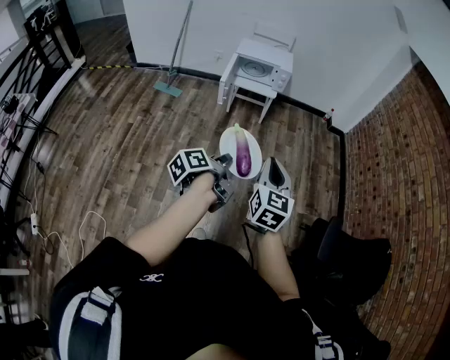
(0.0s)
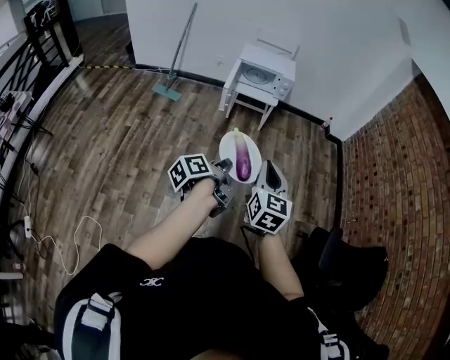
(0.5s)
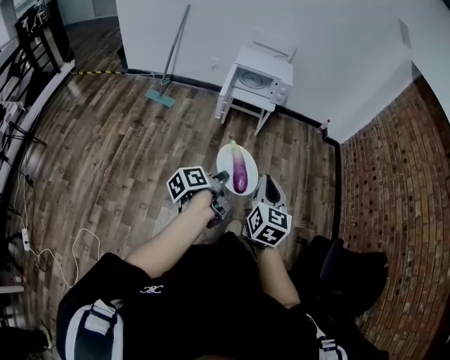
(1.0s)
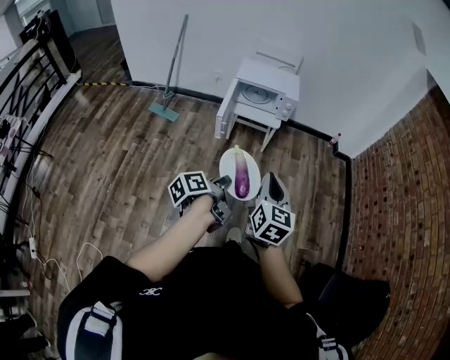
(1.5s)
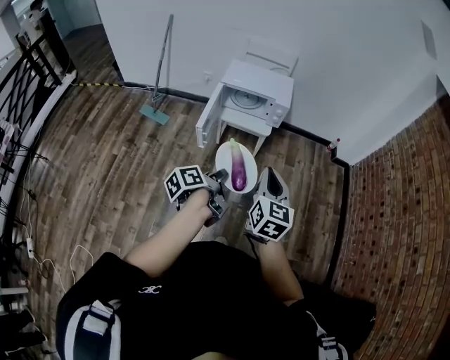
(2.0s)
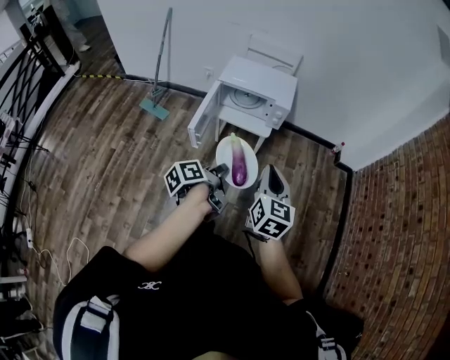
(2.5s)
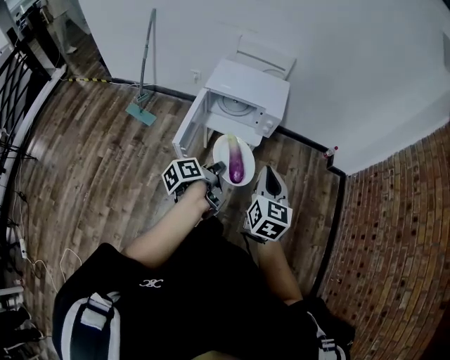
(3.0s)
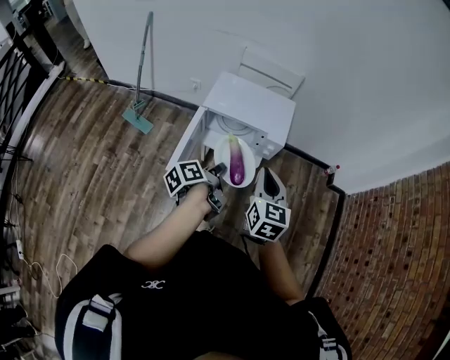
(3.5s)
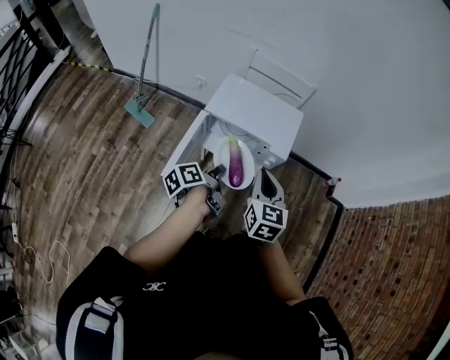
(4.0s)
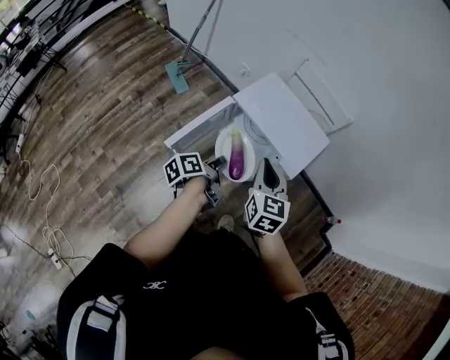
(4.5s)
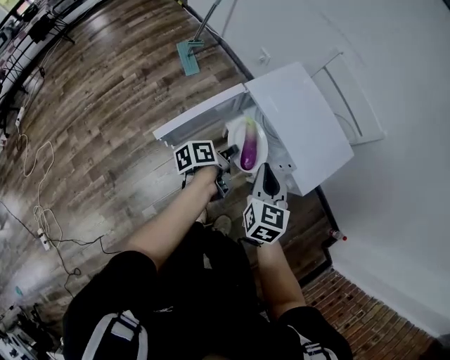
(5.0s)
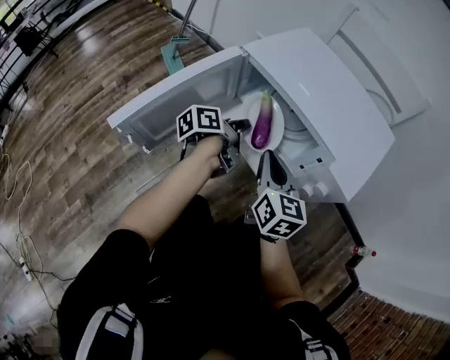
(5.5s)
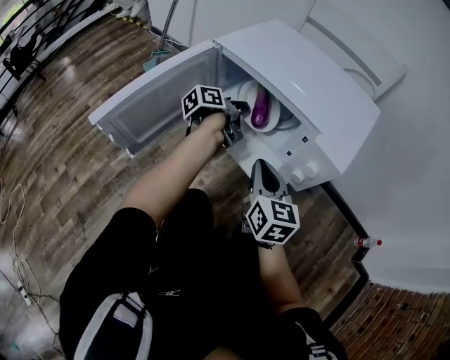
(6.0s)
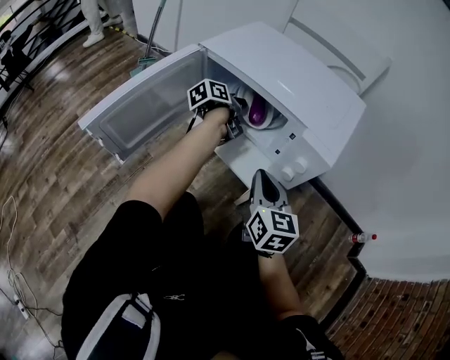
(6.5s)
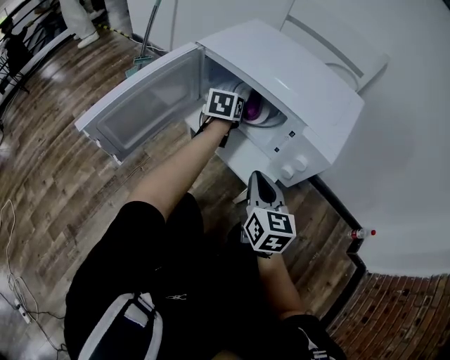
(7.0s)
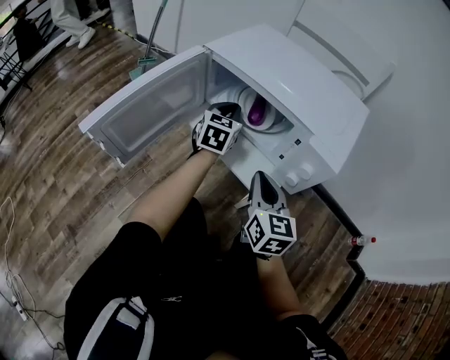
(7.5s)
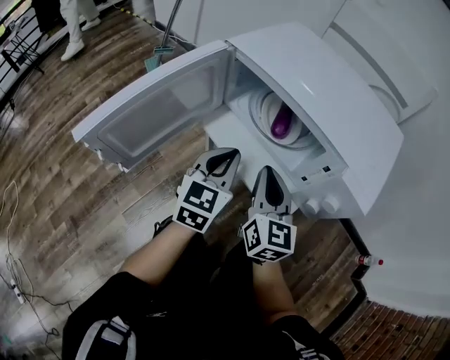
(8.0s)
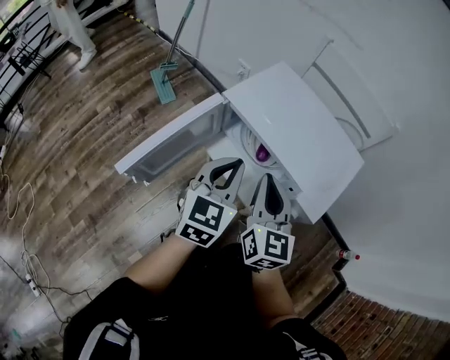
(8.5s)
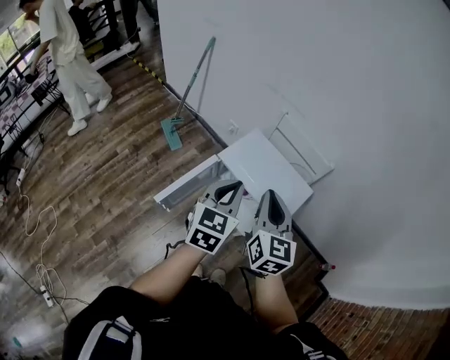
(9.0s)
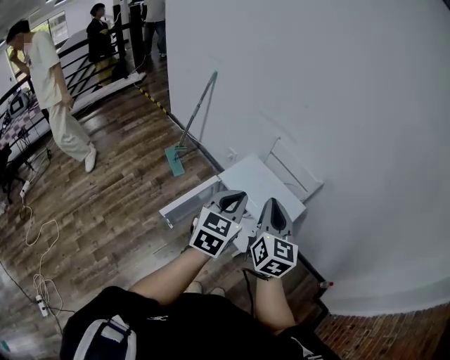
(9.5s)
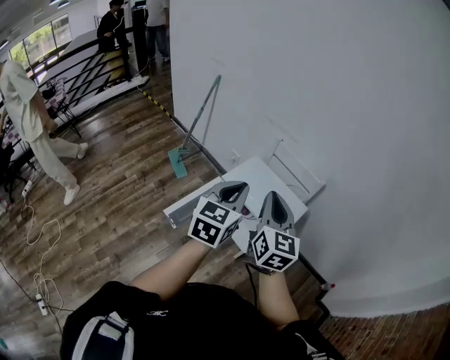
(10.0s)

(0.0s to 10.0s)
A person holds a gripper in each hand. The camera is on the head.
0.0s - 2.0s: Both grippers travel together forward, roughly 35 cm.
2.0s - 4.0s: Both grippers move forward, approximately 40 cm.
4.0s - 6.0s: Both grippers move downward, some 35 cm. The right gripper swivels approximately 30 degrees.
6.0s - 8.0s: The right gripper ends up roughly 5 cm from where it was, while the left gripper moves backward, about 10 cm, twists some 70 degrees clockwise, seen from behind, and opens, then closes again.
8.0s - 10.0s: Both grippers travel together upward, approximately 60 cm.

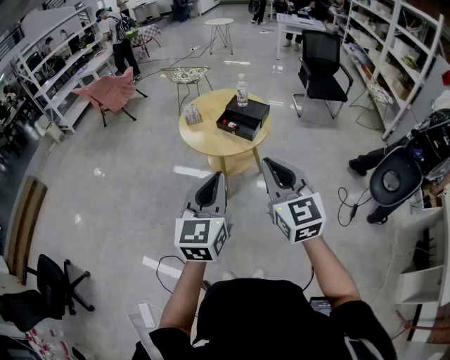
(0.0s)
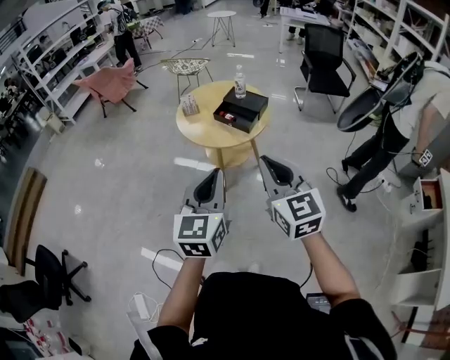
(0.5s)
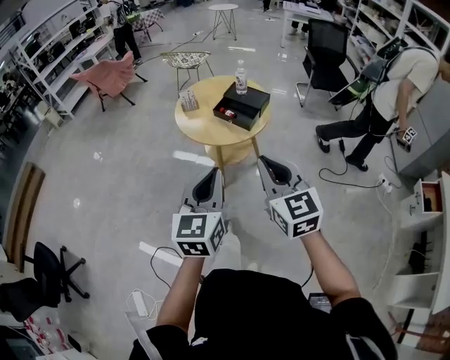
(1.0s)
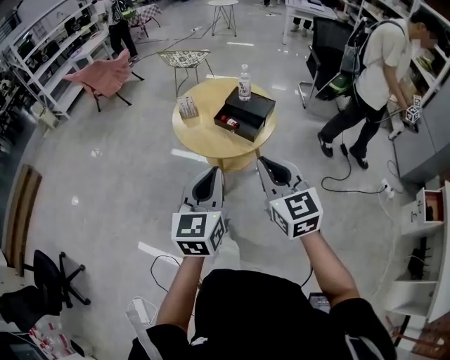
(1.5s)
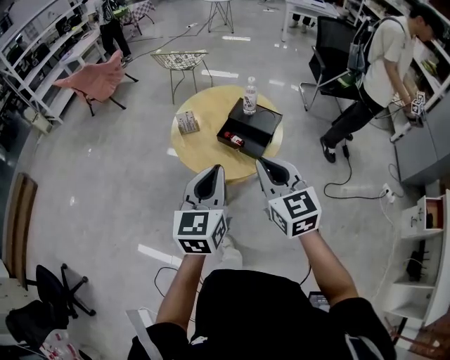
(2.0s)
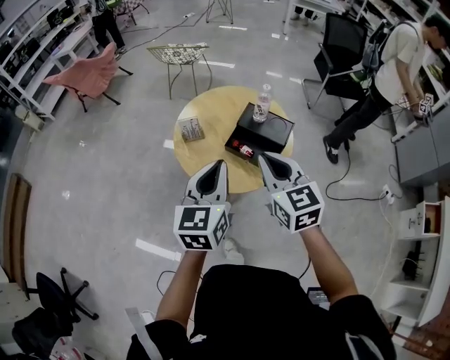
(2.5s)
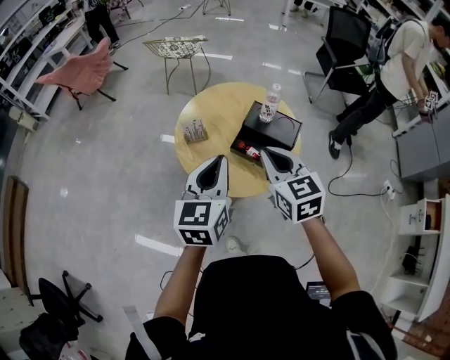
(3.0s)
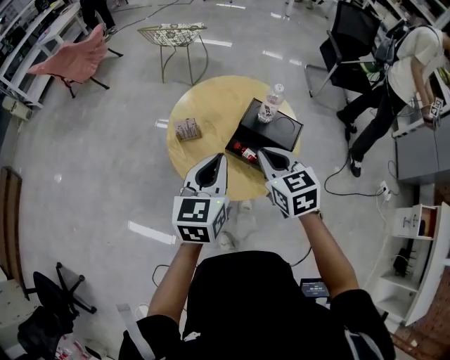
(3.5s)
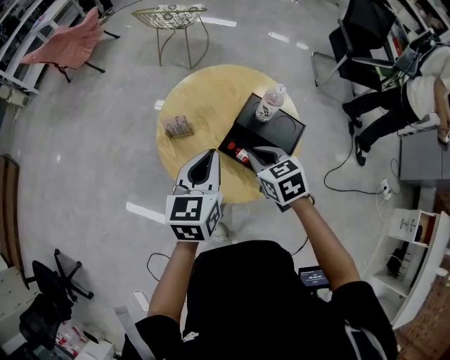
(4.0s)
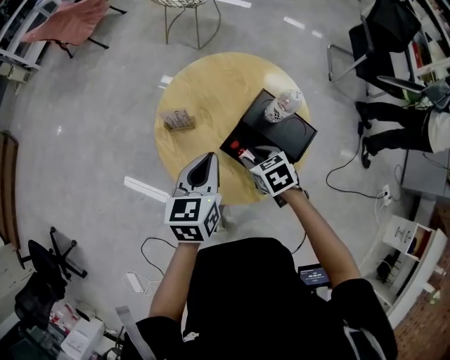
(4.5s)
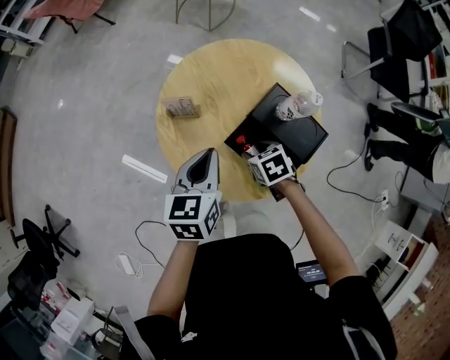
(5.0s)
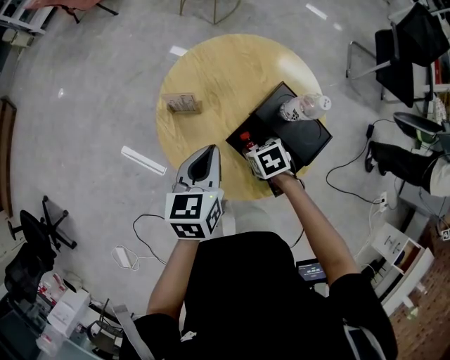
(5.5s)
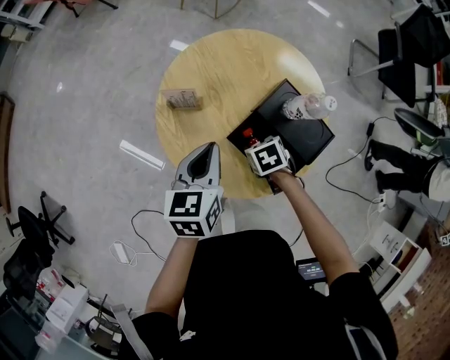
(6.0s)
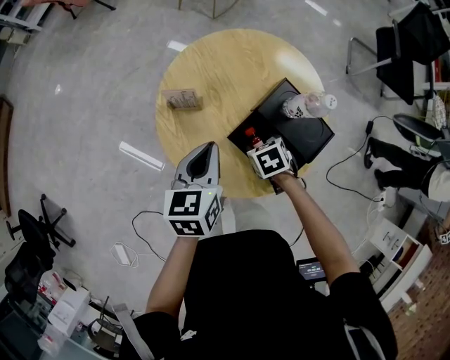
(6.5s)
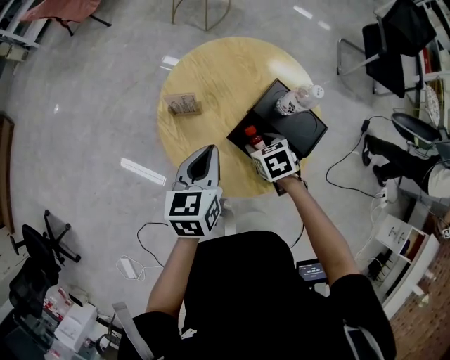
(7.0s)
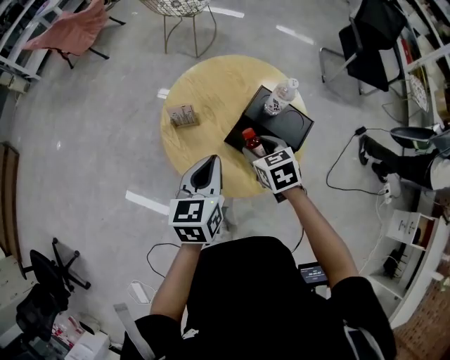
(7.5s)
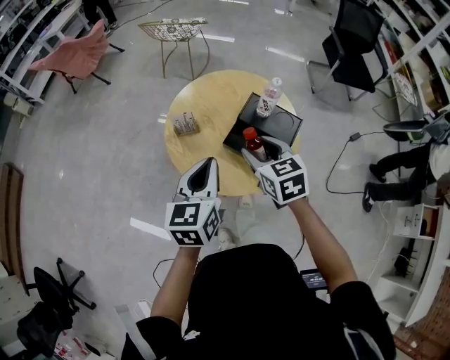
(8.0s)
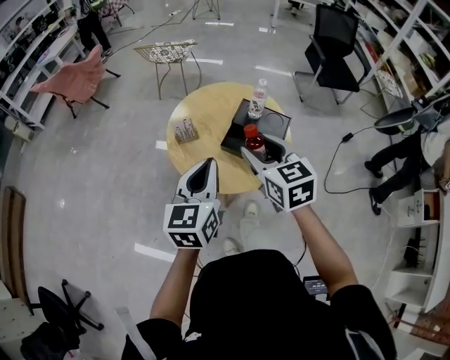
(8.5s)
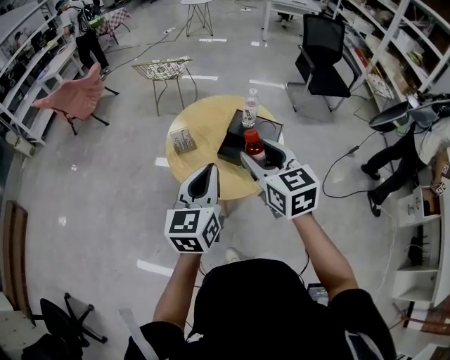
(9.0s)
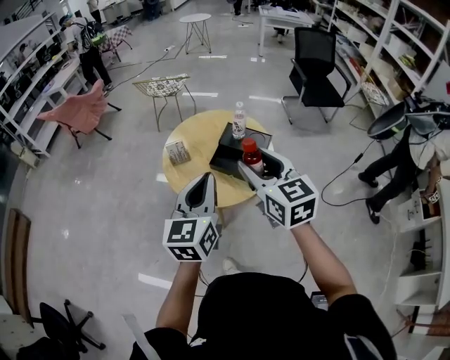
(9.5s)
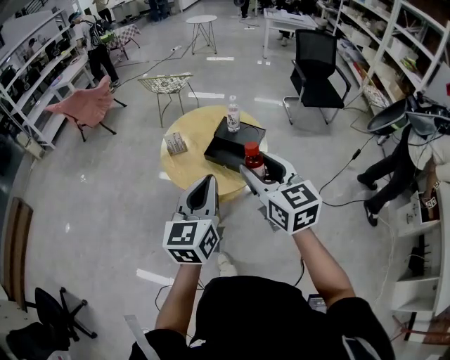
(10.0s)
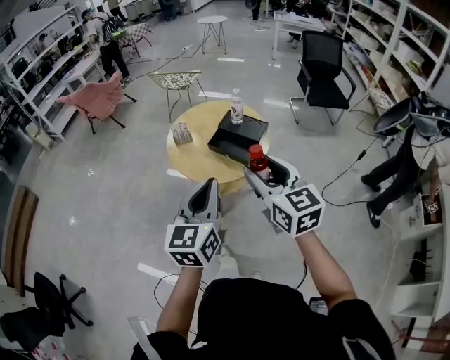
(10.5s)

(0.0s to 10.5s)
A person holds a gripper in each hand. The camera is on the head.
0.0s - 2.0s: The two grippers go about 30 cm forward.
2.0s - 4.0s: The grippers both shift forward and downward by roughly 30 cm. The right gripper angles its fingers downward, by roughly 30 degrees.
4.0s - 6.5s: The left gripper heads downward and forward, covering roughly 15 cm, while the right gripper travels downward by roughly 20 cm, swivels about 30 degrees, and opens up.
6.5s - 8.5s: The left gripper shifts about 20 cm upward, and changes its angle by roughly 30 degrees. The right gripper travels upward by some 35 cm, and points its fingers some 50 degrees further upward.
8.5s - 10.5s: Both grippers travel together backward and to the right, roughly 25 cm.

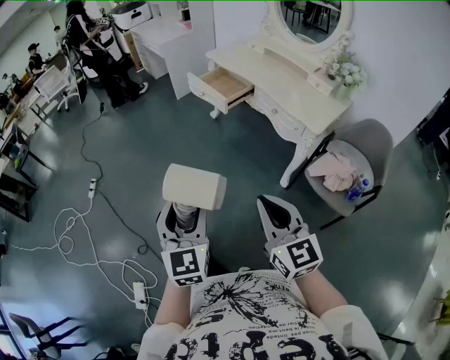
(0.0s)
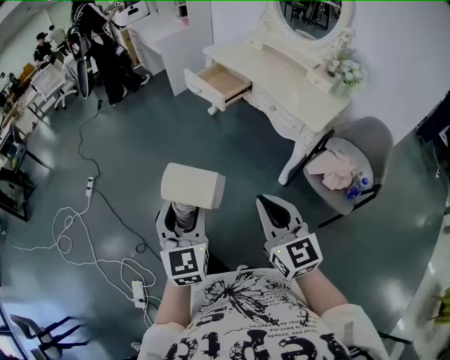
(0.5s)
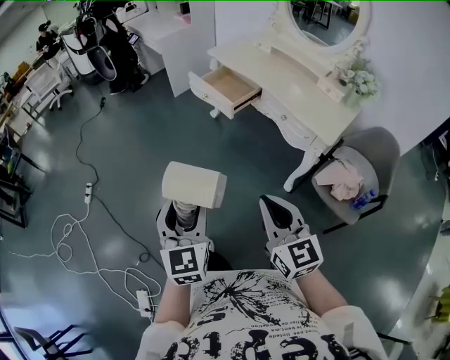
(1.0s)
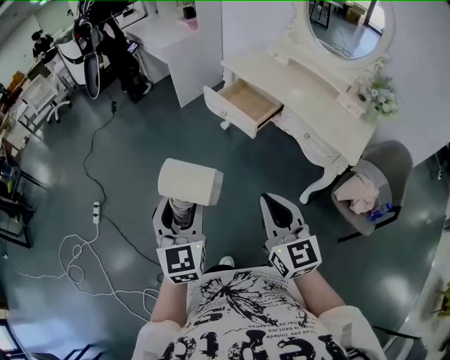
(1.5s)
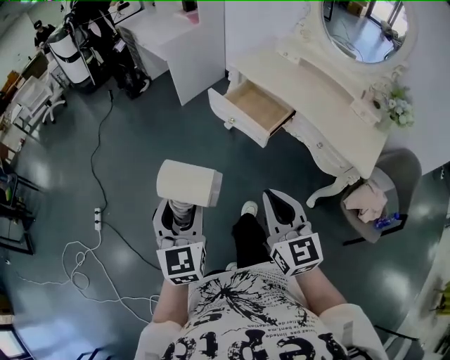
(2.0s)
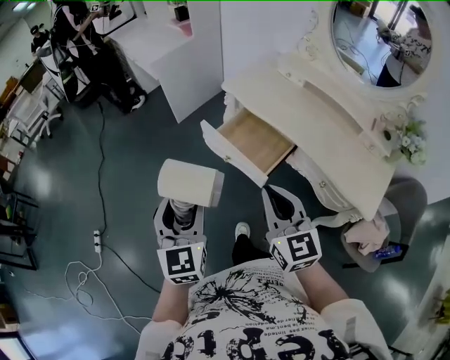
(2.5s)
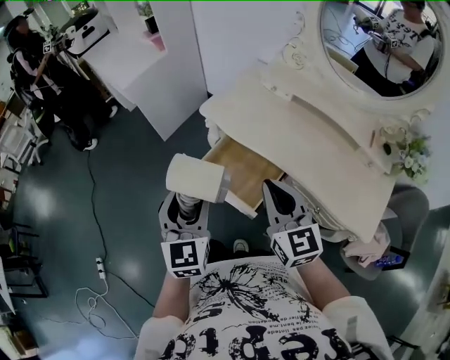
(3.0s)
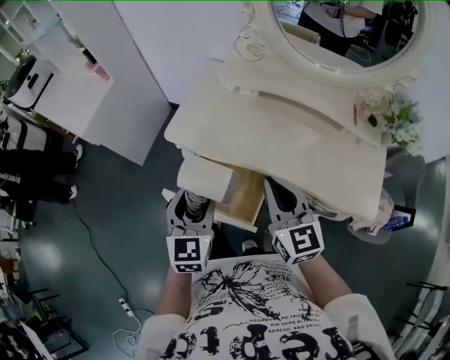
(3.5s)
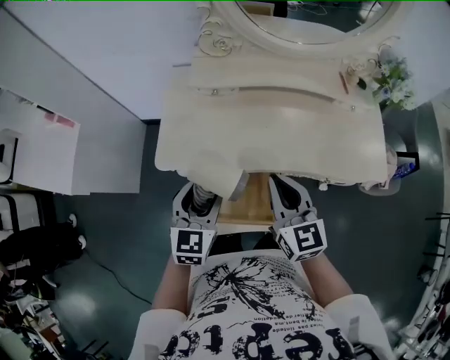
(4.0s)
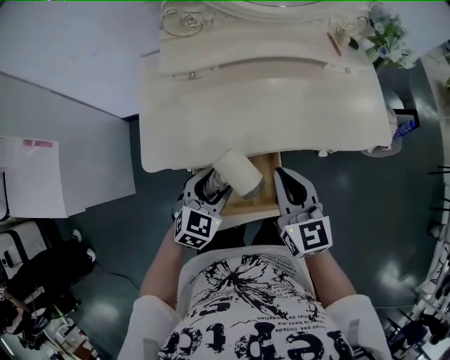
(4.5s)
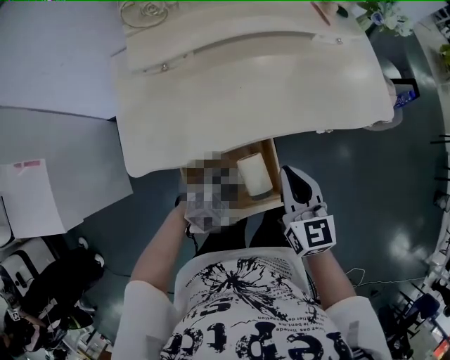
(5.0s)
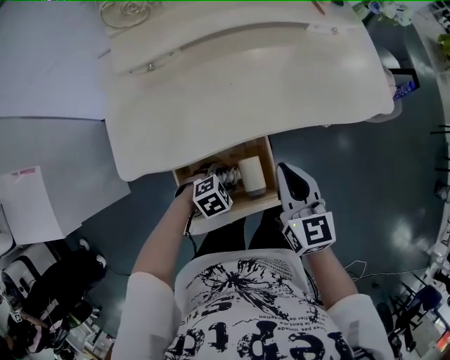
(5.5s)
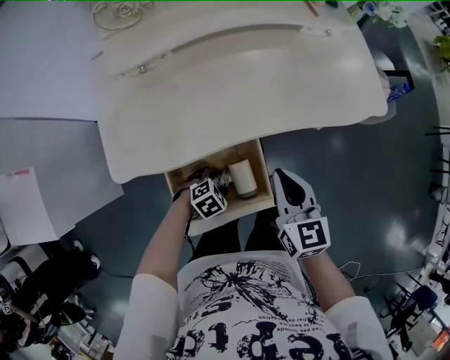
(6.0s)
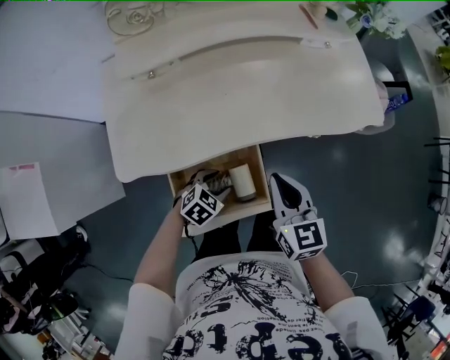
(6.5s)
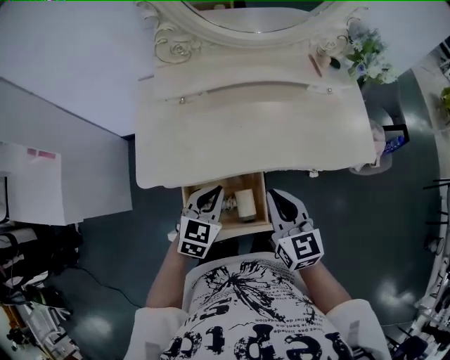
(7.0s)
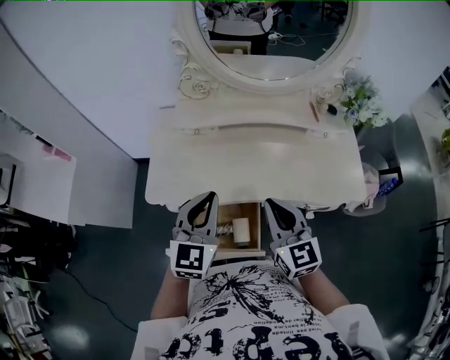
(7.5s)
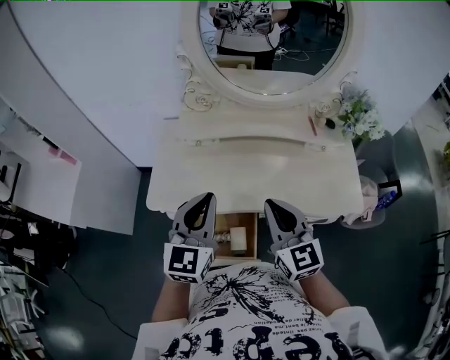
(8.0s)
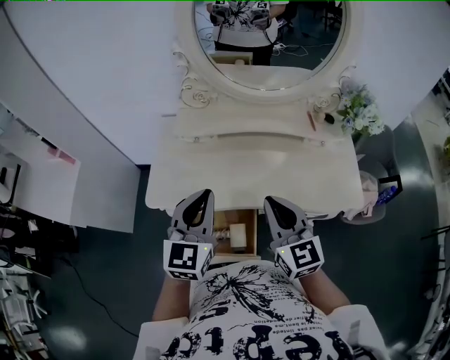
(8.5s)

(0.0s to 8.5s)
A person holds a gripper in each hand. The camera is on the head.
0.0s - 2.0s: The pair of grippers is taken forward, about 40 cm.
2.0s - 4.0s: The pair of grippers is taken roughly 60 cm. The right gripper changes its angle by roughly 40 degrees, while the left gripper turns by approximately 60 degrees.
4.0s - 6.5s: The right gripper heads downward, covering about 10 cm, and changes its angle by about 20 degrees. Meanwhile the left gripper moves downward, some 25 cm, and angles its fingers downward, by some 30 degrees.
6.5s - 8.5s: The left gripper goes some 40 cm upward, angles its fingers upward, by about 50 degrees, and closes up. The right gripper moves upward, approximately 20 cm, and changes its angle by some 30 degrees.
